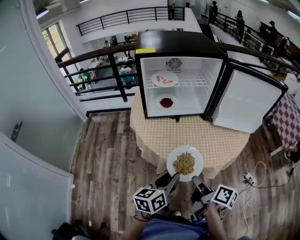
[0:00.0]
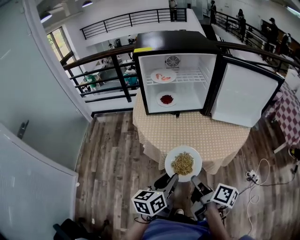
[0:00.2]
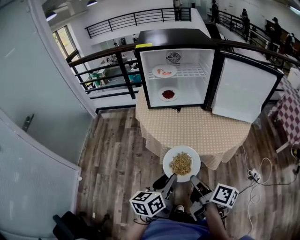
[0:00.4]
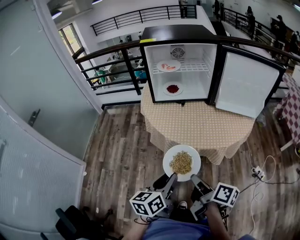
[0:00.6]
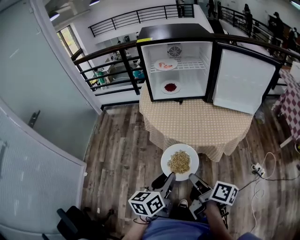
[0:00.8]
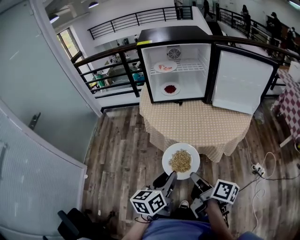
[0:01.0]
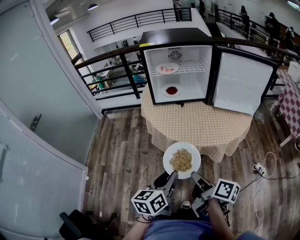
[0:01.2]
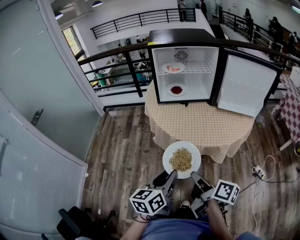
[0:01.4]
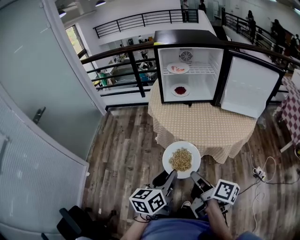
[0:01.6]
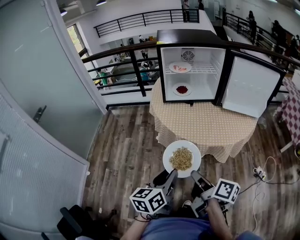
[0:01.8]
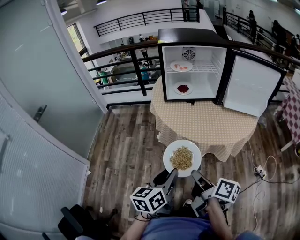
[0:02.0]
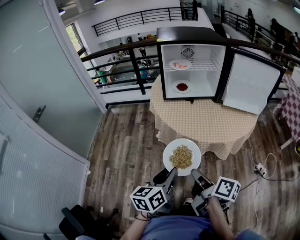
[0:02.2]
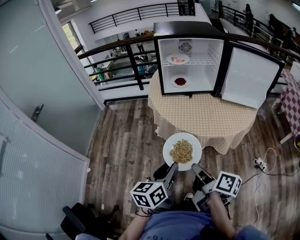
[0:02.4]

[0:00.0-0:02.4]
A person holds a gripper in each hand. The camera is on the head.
0:00.0 to 0:01.2: Both grippers travel together backward, about 15 cm.
0:01.2 to 0:02.4: Both grippers travel together to the left, approximately 5 cm.

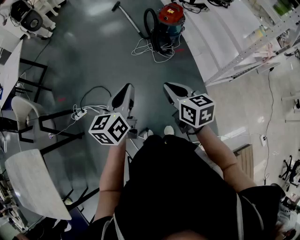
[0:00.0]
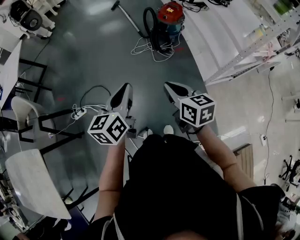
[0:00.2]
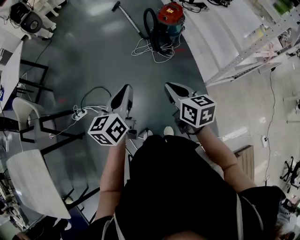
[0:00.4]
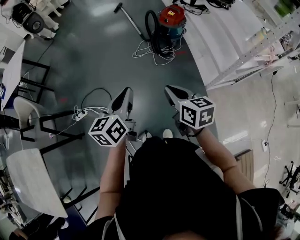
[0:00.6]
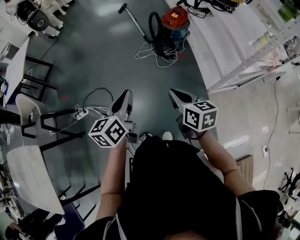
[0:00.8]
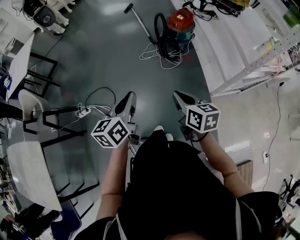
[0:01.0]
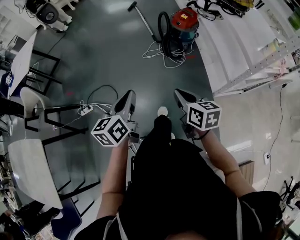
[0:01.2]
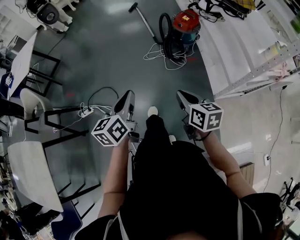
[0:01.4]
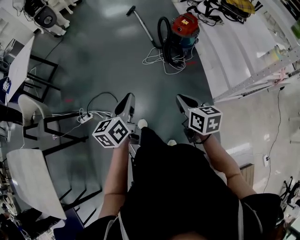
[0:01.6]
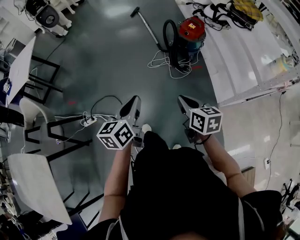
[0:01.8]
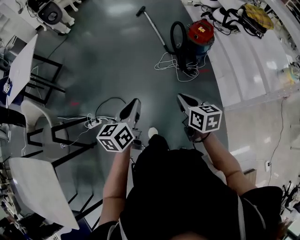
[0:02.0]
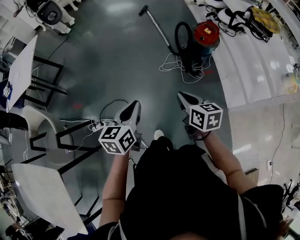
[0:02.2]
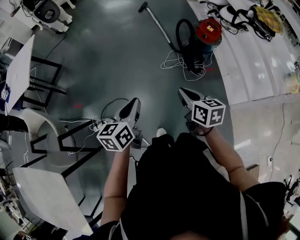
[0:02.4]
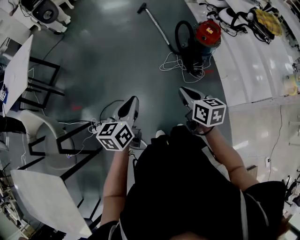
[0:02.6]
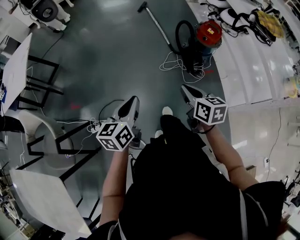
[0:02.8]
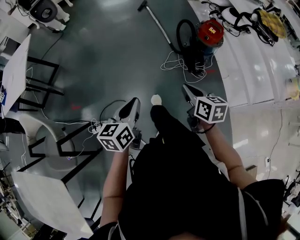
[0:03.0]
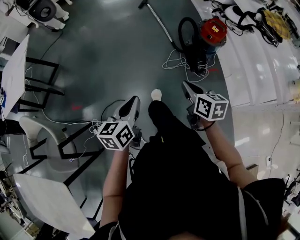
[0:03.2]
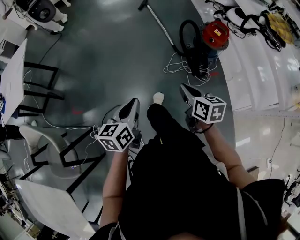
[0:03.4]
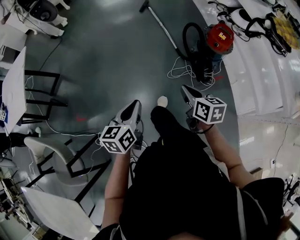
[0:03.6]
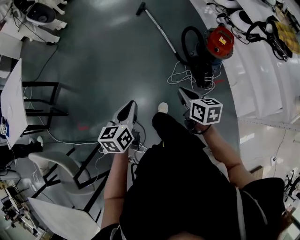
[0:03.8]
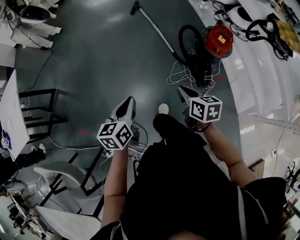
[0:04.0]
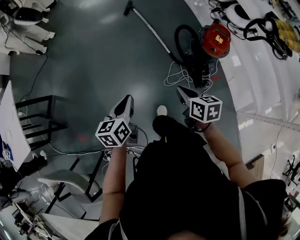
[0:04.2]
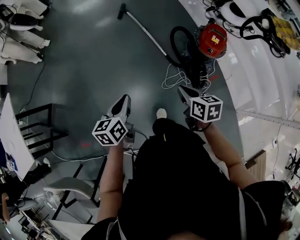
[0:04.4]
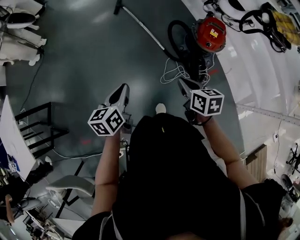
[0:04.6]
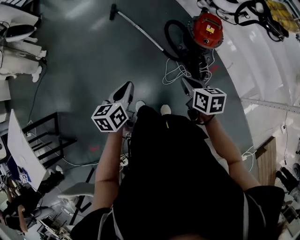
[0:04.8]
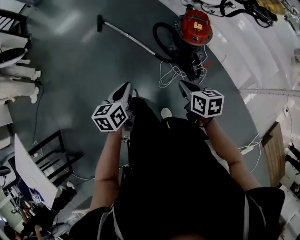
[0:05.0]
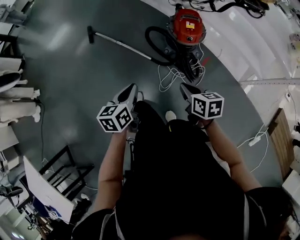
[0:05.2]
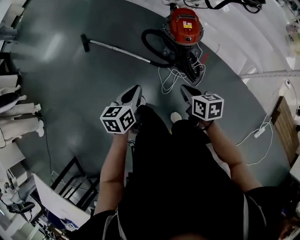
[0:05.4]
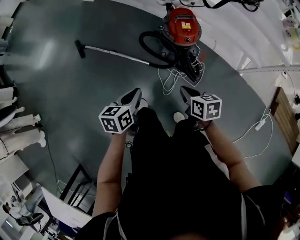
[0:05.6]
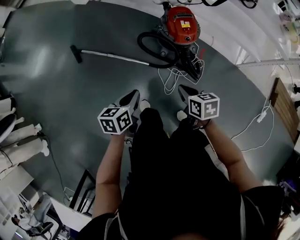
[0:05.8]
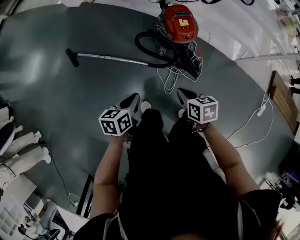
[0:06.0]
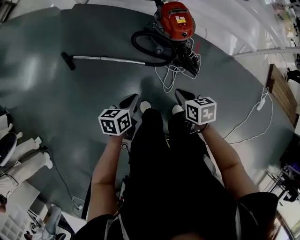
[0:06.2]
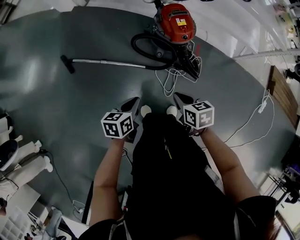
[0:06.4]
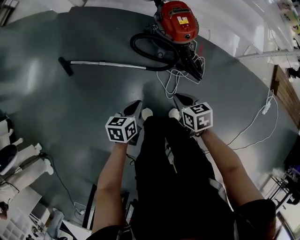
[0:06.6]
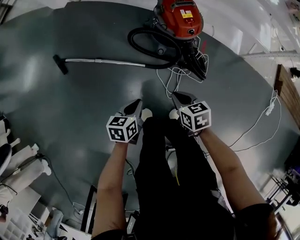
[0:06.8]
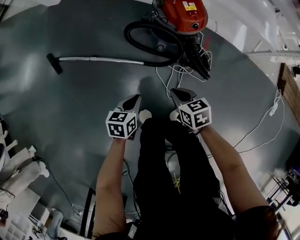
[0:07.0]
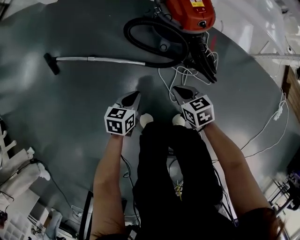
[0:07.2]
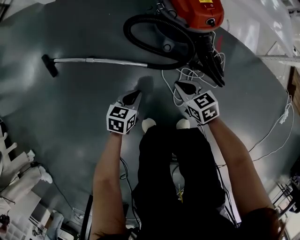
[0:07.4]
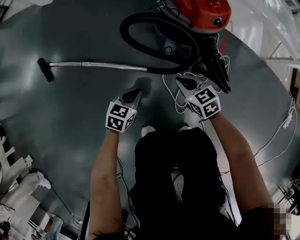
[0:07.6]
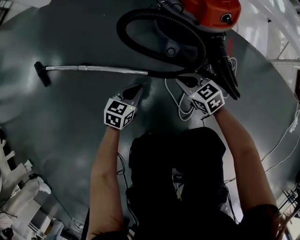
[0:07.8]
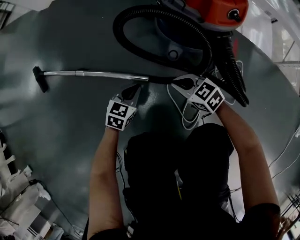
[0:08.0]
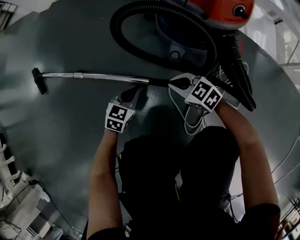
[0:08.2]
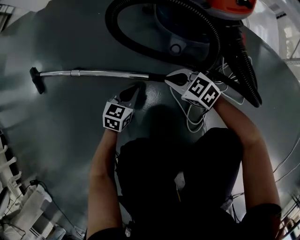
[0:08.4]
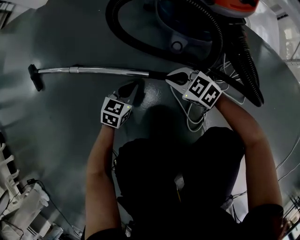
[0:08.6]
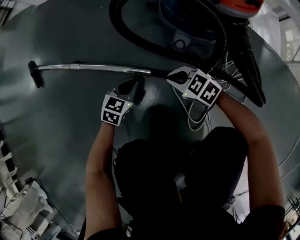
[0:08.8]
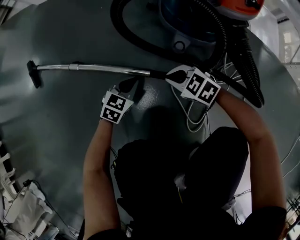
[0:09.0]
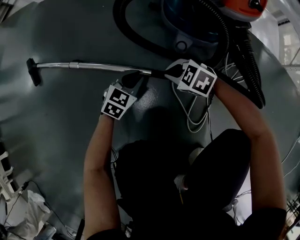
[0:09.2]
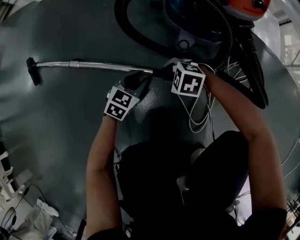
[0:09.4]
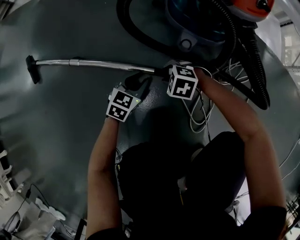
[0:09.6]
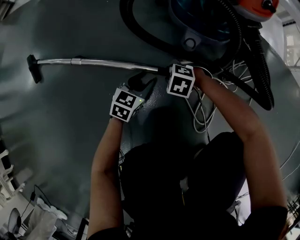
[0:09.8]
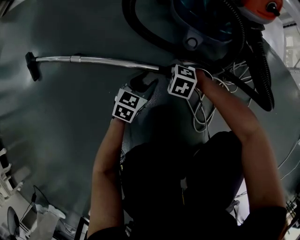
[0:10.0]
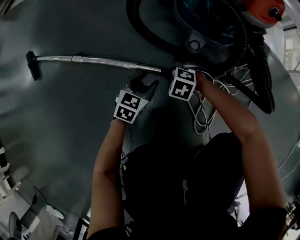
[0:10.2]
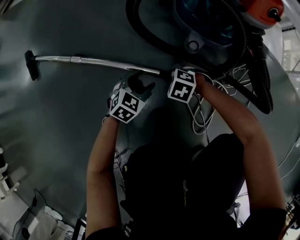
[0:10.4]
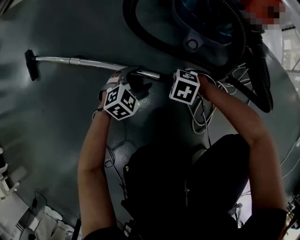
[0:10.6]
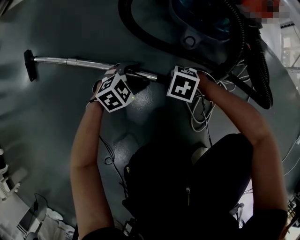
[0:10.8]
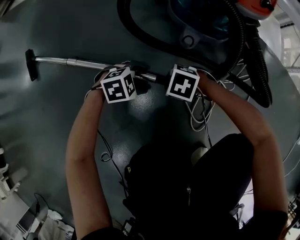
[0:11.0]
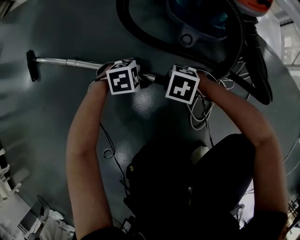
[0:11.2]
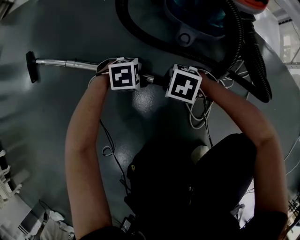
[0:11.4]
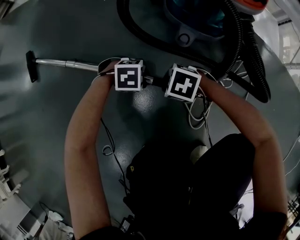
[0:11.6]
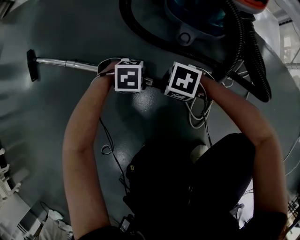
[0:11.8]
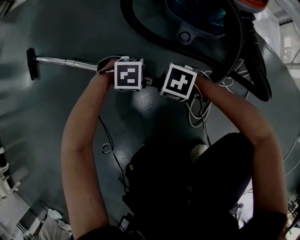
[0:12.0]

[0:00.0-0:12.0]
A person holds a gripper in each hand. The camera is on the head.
0:00.0 to 0:01.6: The right gripper travels forward and to the right by some 10 cm. The left gripper heads forward, covering some 5 cm.
0:01.6 to 0:03.0: The right gripper shifts about 35 cm forward and to the left, while the left gripper is displaced to the left and forward by roughly 30 cm.
0:03.0 to 0:04.4: The two grippers go roughly 40 cm forward.
0:04.4 to 0:06.0: The right gripper changes place by approximately 20 cm, and changes its angle by roughly 40 degrees. The left gripper ends up about 30 cm from where it was, and changes its angle by roughly 60 degrees.
0:06.0 to 0:07.6: Both grippers move downward, roughly 50 cm. The right gripper rotates roughly 20 degrees, while the left gripper turns by approximately 30 degrees.
0:07.6 to 0:09.0: The left gripper goes roughly 20 cm downward and forward; the right gripper is displaced downward by approximately 20 cm, and rotates about 30 degrees.
0:09.0 to 0:10.4: The left gripper opens up; the right gripper is displaced downward by some 10 cm, rotates some 30 degrees, and opens up.
0:10.4 to 0:12.0: The left gripper changes place by about 5 cm, and changes its angle by roughly 60 degrees, while the right gripper moves some 10 cm.

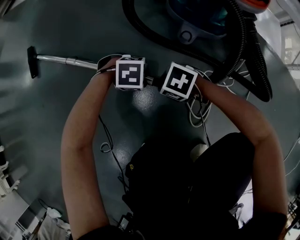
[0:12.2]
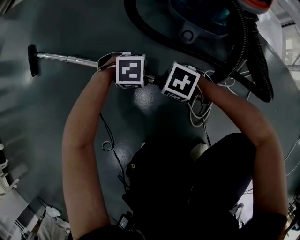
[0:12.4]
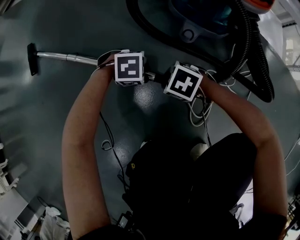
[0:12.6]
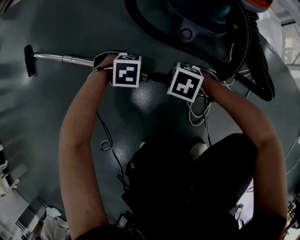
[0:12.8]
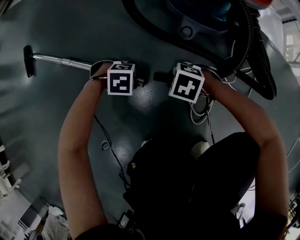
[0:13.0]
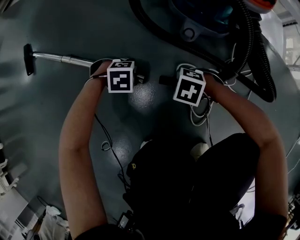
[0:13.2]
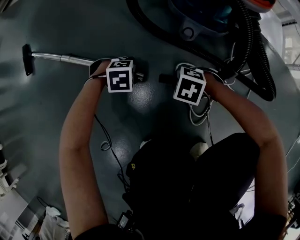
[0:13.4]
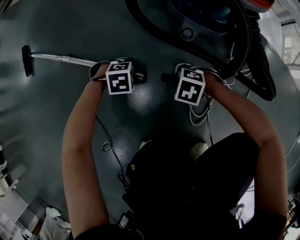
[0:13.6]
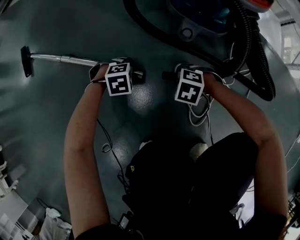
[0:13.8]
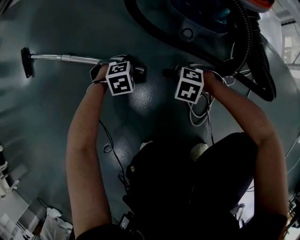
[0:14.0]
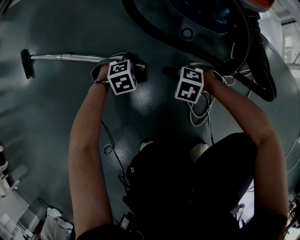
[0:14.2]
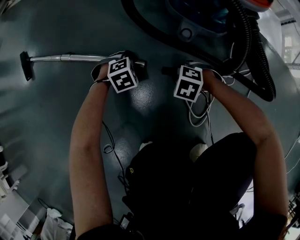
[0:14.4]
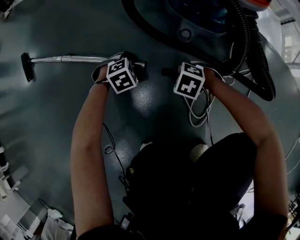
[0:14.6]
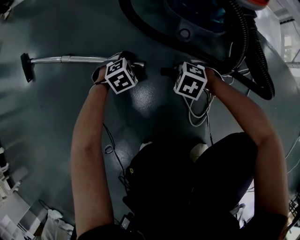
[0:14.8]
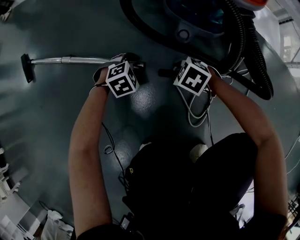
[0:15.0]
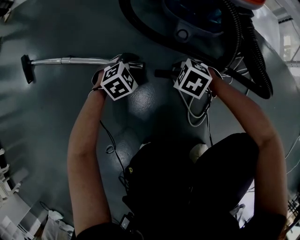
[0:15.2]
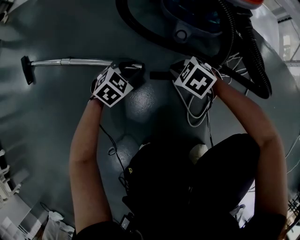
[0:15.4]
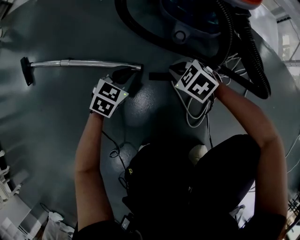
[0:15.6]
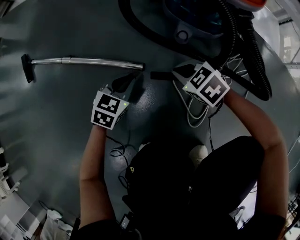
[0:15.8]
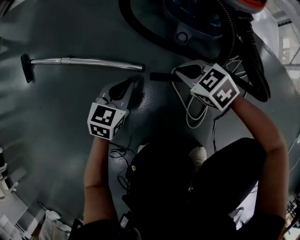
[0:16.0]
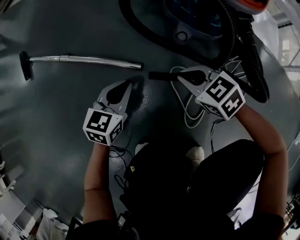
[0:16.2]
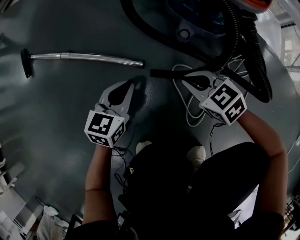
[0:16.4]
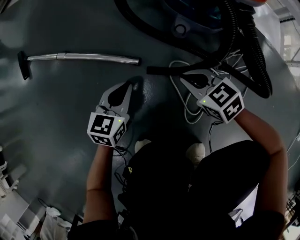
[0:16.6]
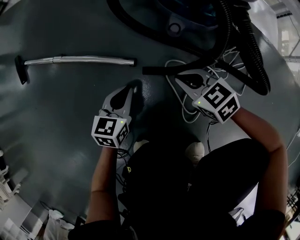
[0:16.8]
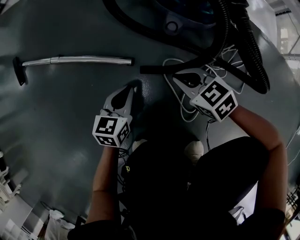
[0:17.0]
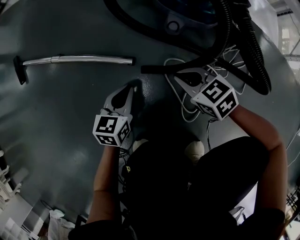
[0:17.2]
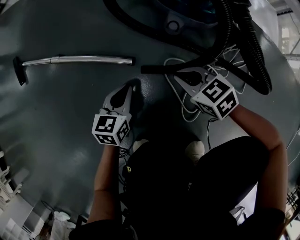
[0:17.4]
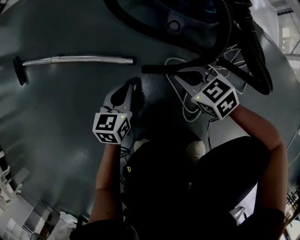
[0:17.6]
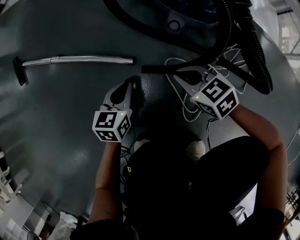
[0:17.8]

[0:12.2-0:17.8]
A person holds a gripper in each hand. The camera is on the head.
0:12.2 to 0:13.6: The right gripper shifts by roughly 5 cm; the left gripper moves some 5 cm.
0:13.6 to 0:15.0: The left gripper shifts by some 5 cm, and swivels some 20 degrees.
0:15.0 to 0:16.4: The right gripper is displaced upward by about 10 cm, rotates about 30 degrees, and closes up. The left gripper shifts approximately 15 cm upward and backward, tips its fingers upward by about 40 degrees, and closes up.
0:16.4 to 0:17.8: The left gripper moves downward, some 5 cm.

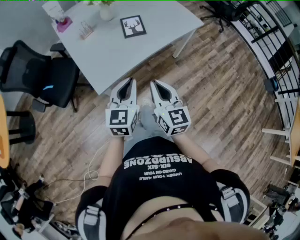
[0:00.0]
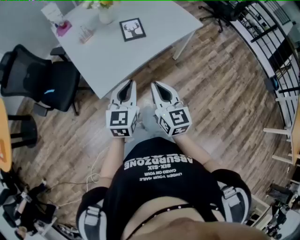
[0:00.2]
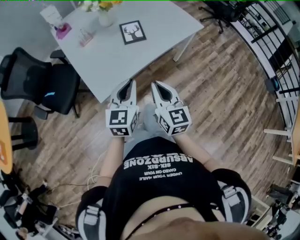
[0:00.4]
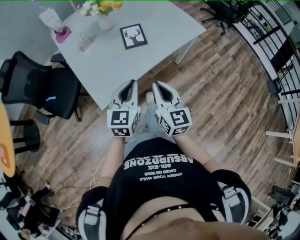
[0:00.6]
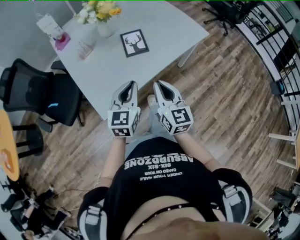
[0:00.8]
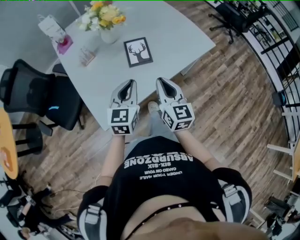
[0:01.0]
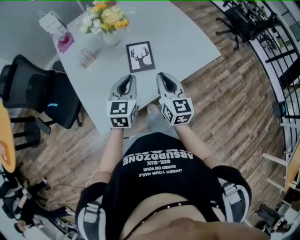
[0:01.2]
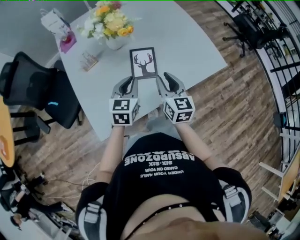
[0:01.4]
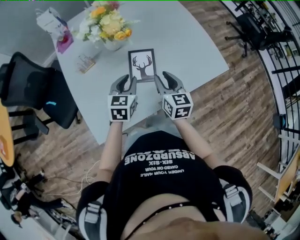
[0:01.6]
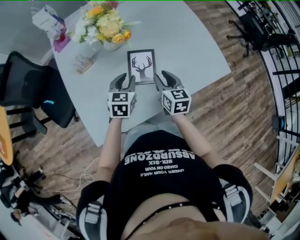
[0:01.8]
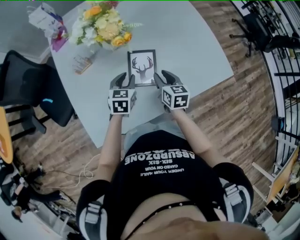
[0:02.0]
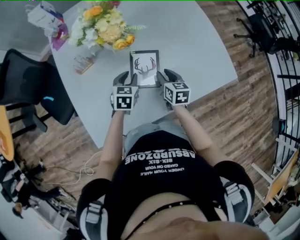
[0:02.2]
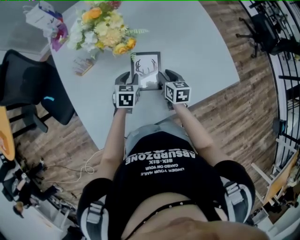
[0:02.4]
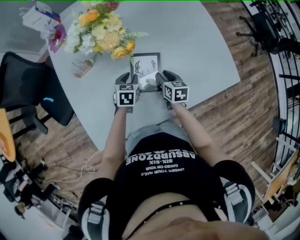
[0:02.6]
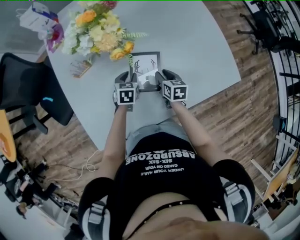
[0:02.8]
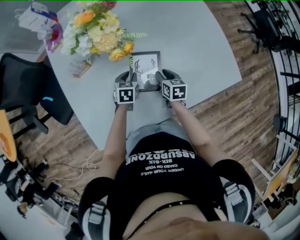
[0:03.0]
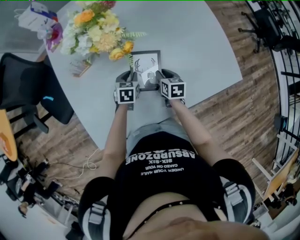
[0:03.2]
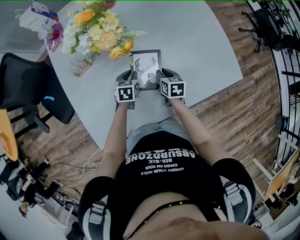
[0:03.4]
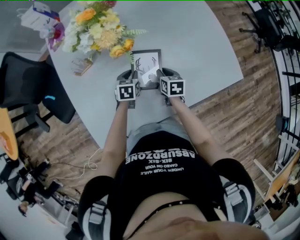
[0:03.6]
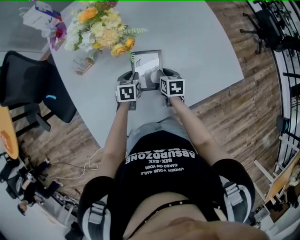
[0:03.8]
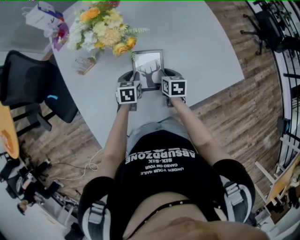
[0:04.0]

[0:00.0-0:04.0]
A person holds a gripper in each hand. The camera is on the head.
0:00.0 to 0:01.4: The grippers both shift forward by approximately 35 cm. The right gripper opens up.
0:01.4 to 0:02.6: Both grippers travel together downward and forward, roughly 25 cm. The right gripper swivels roughly 30 degrees; the left gripper rotates some 30 degrees.
0:02.6 to 0:04.0: The grippers stay close to where they were, moving slightly.
